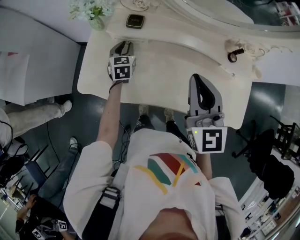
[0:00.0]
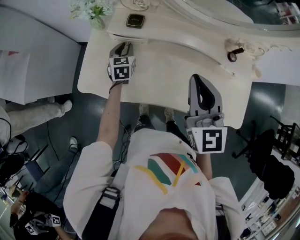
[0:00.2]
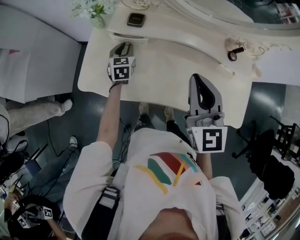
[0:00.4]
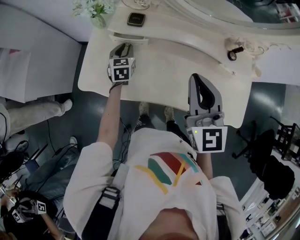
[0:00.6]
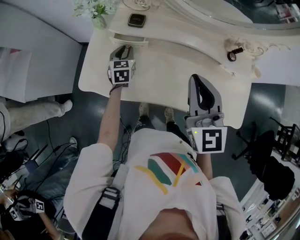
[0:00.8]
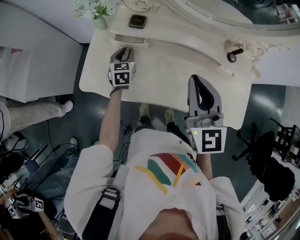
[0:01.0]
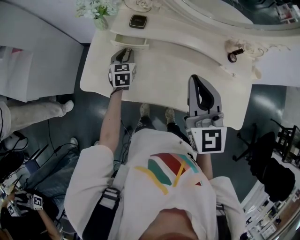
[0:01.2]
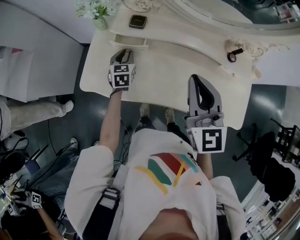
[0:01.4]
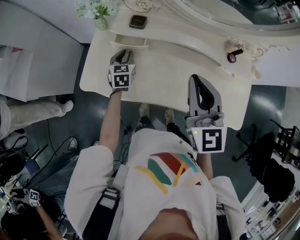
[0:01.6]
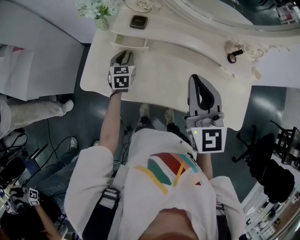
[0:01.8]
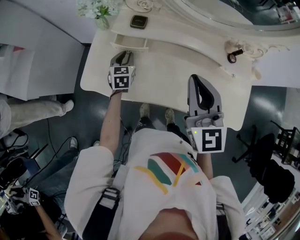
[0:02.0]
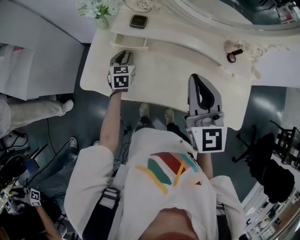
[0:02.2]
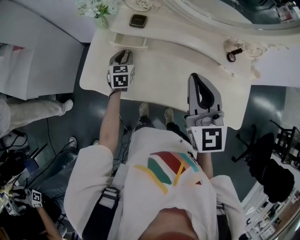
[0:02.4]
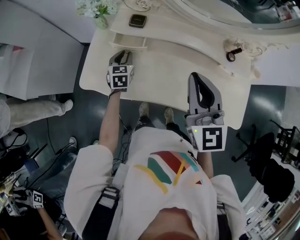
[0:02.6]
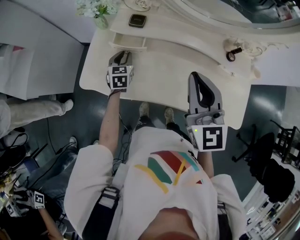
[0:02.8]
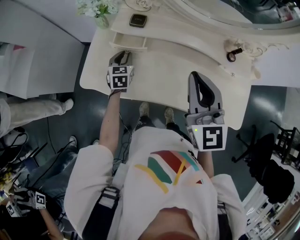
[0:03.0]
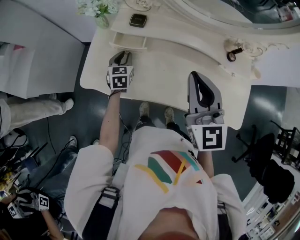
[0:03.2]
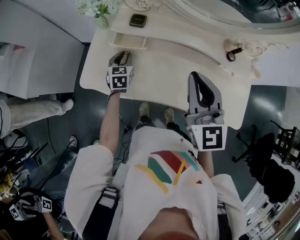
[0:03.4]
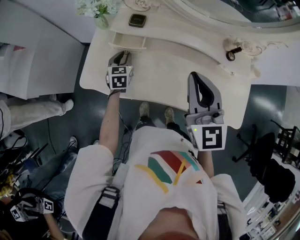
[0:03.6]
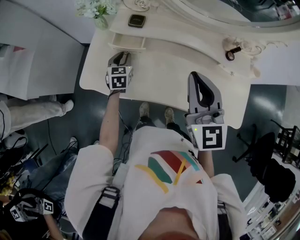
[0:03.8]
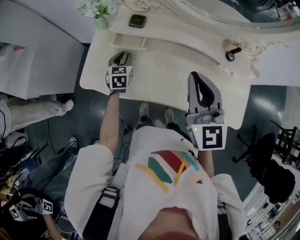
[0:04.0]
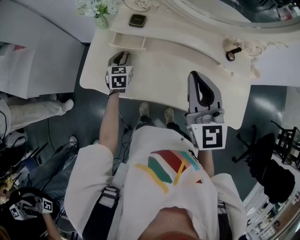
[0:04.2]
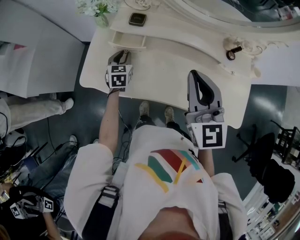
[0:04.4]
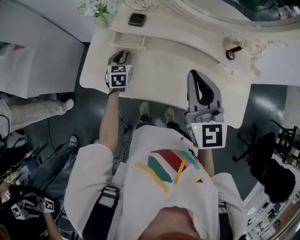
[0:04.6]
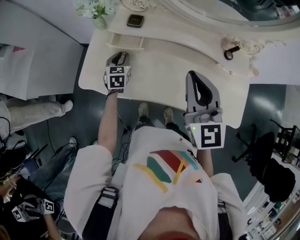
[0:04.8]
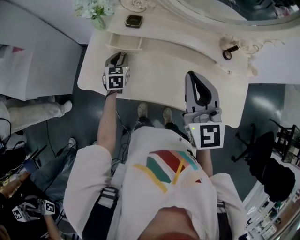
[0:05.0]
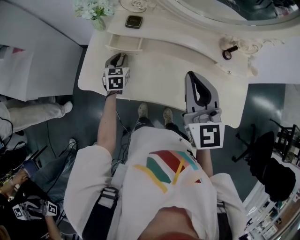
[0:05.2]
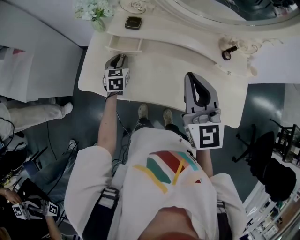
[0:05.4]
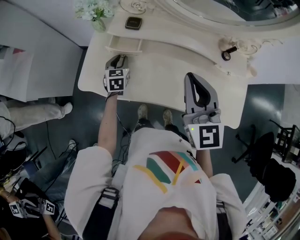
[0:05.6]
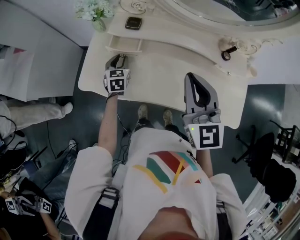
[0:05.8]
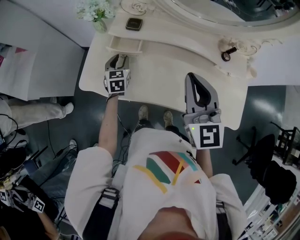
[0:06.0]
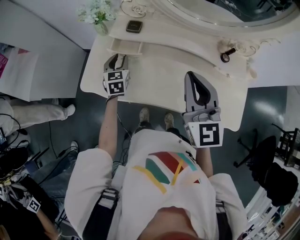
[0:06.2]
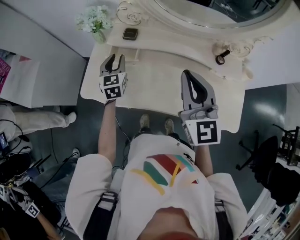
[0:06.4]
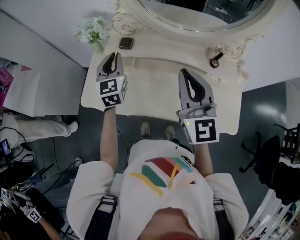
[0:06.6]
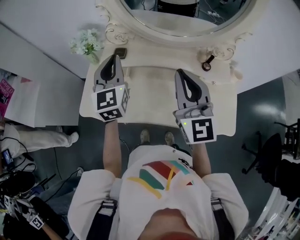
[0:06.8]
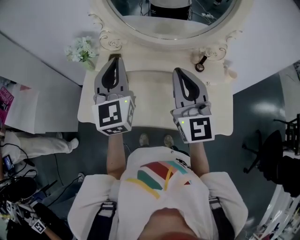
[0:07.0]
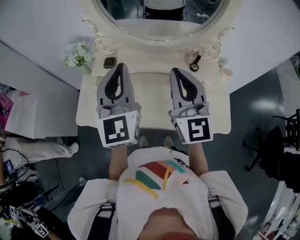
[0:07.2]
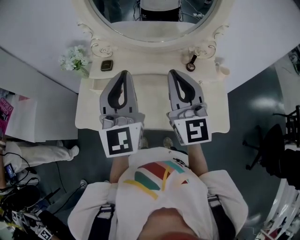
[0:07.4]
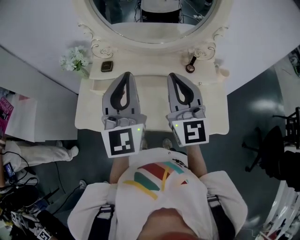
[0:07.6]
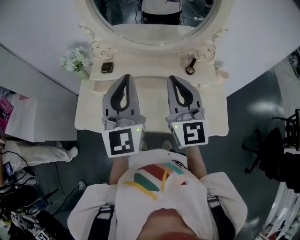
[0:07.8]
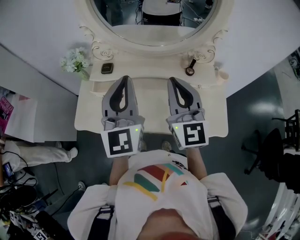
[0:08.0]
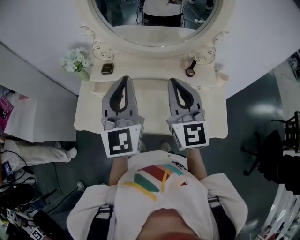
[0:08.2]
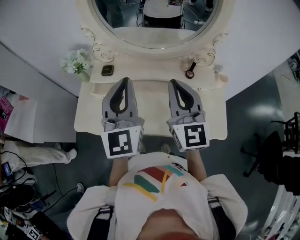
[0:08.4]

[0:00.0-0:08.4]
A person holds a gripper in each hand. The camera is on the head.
0:00.0 to 0:02.8: The grippers make only small movements.
0:02.8 to 0:05.6: The two grippers keep their place.
0:05.6 to 0:07.0: The right gripper shifts about 10 cm upward and to the right; the left gripper is displaced upward by some 35 cm, and tips its fingers upward by about 40 degrees.
0:07.0 to 0:08.4: The left gripper heads backward and to the right, covering approximately 10 cm.

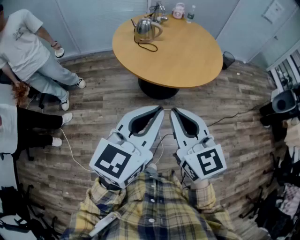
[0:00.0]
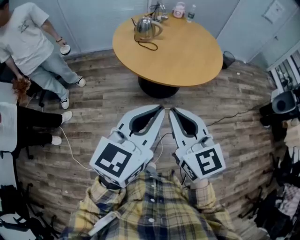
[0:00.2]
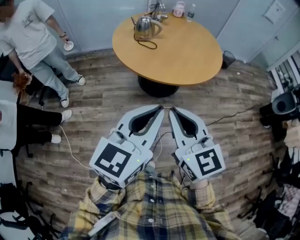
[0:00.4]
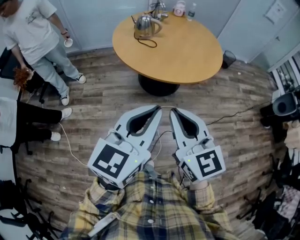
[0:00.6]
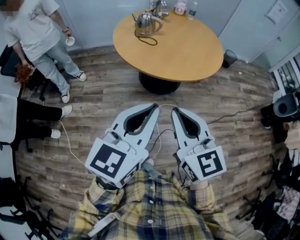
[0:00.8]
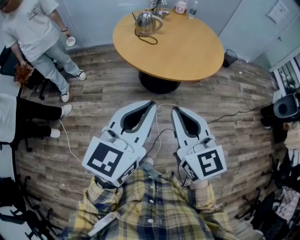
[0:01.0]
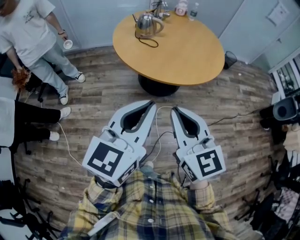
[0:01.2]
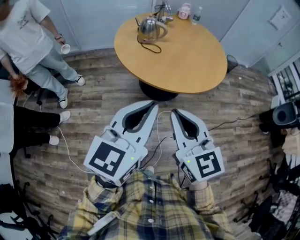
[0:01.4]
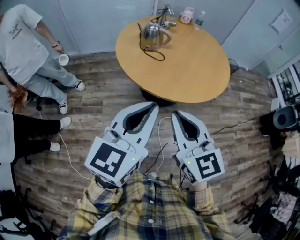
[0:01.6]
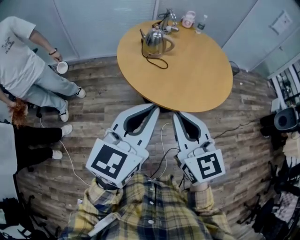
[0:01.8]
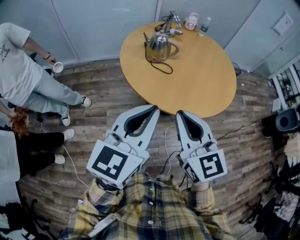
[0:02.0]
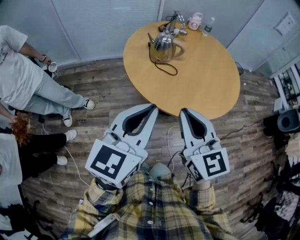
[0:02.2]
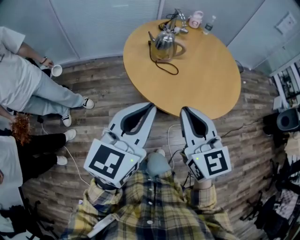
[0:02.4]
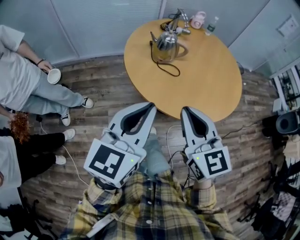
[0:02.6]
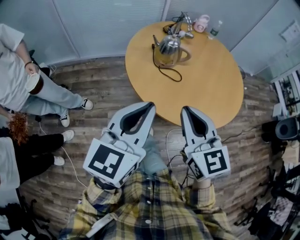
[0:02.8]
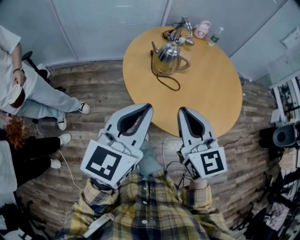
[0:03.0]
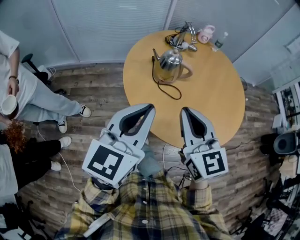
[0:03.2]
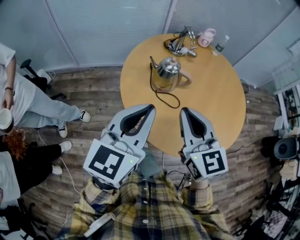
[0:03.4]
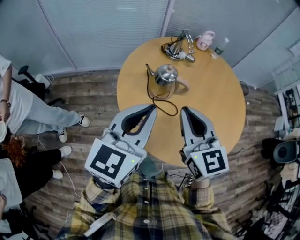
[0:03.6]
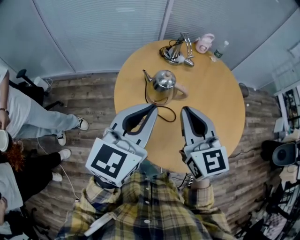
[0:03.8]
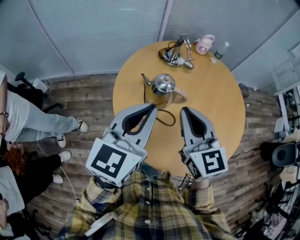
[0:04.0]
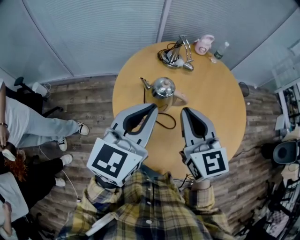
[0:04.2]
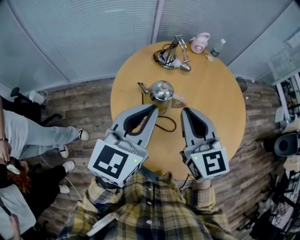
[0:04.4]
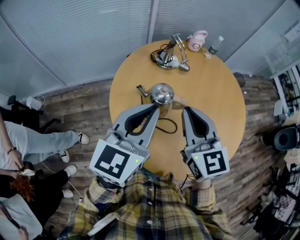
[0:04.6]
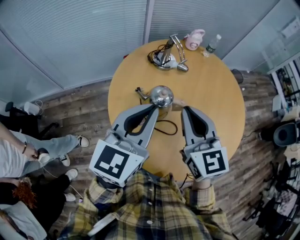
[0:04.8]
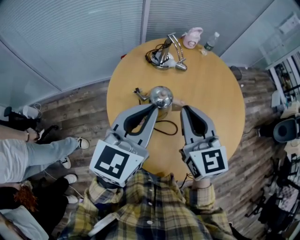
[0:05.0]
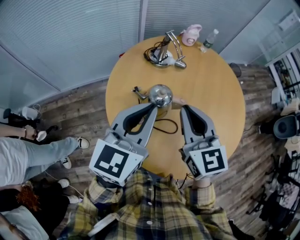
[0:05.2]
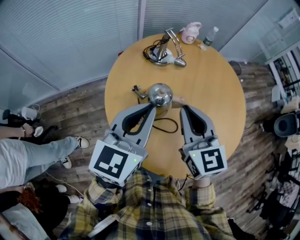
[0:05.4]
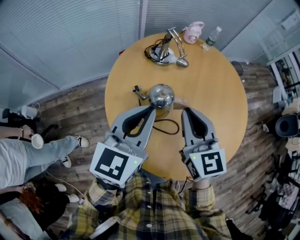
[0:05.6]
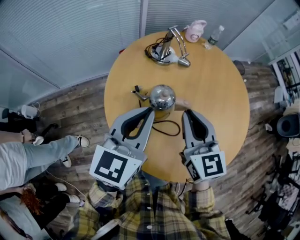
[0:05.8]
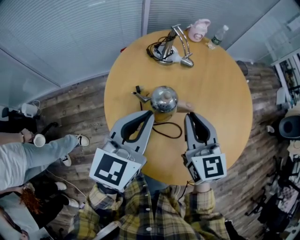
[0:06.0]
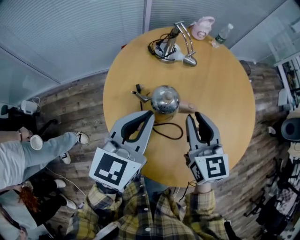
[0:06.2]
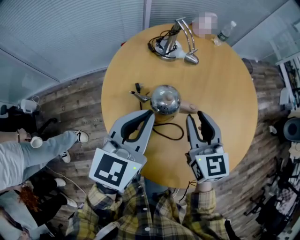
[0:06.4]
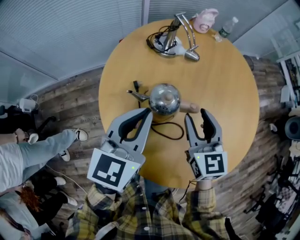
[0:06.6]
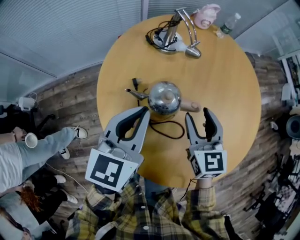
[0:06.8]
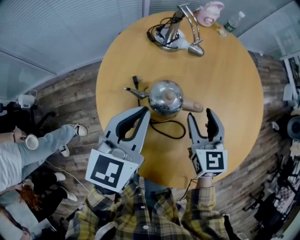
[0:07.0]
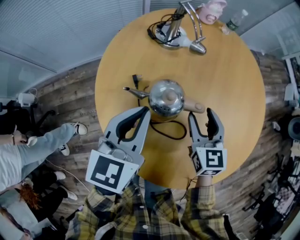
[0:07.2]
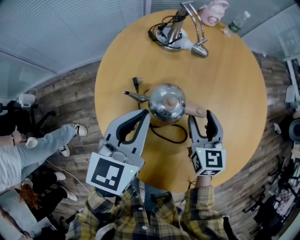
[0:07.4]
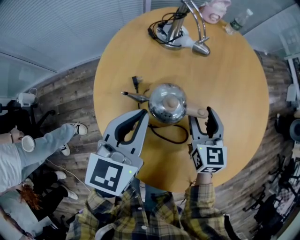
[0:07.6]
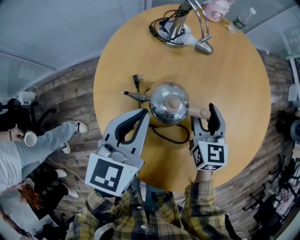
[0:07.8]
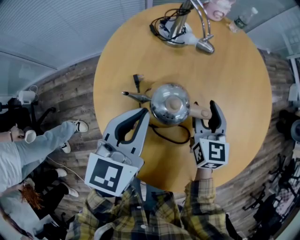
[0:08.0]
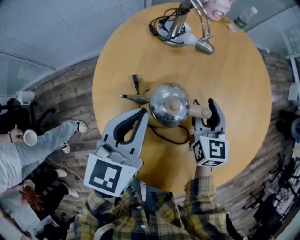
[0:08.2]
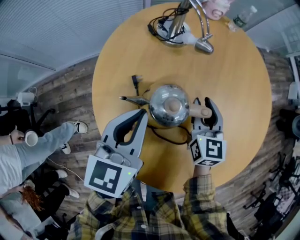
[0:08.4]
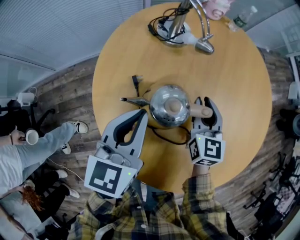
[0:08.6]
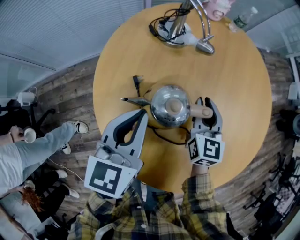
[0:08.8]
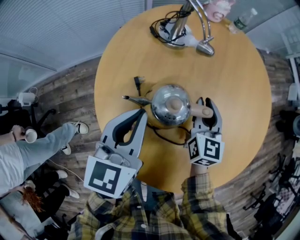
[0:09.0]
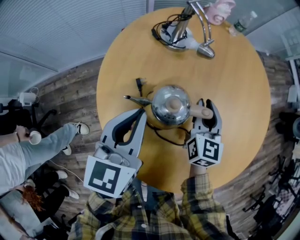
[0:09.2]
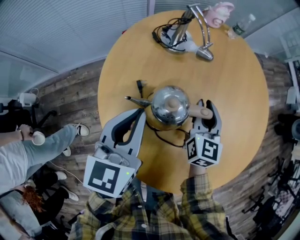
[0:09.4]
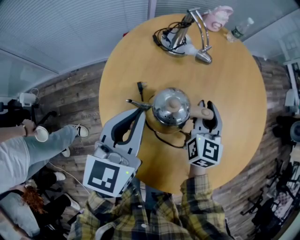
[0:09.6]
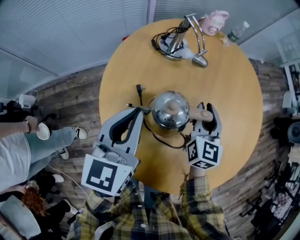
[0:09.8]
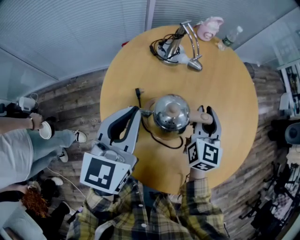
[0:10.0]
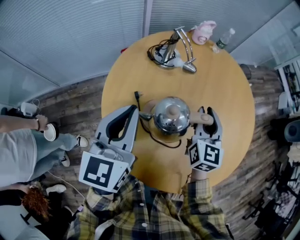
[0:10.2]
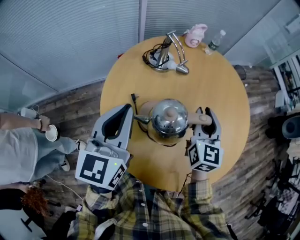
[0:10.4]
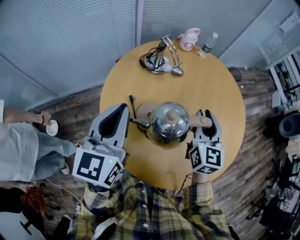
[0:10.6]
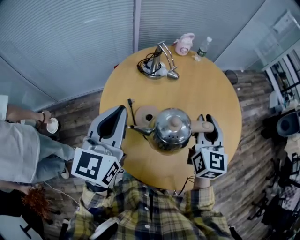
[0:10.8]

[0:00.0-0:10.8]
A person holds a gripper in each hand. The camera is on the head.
0:00.0 to 0:01.6: The left gripper heads forward and to the left, covering roughly 15 cm, while the right gripper moves forward, roughly 10 cm.
0:01.6 to 0:03.0: Both grippers move forward and to the left, roughly 25 cm.
0:03.0 to 0:04.6: The grippers both shift forward by some 30 cm.
0:04.6 to 0:06.2: The two grippers go about 10 cm downward and forward.
0:06.2 to 0:07.8: The left gripper moves downward, roughly 10 cm. The right gripper goes roughly 15 cm downward and forward, and opens up.
0:07.8 to 0:09.2: The right gripper closes up.
0:09.2 to 0:10.8: The left gripper travels upward by some 15 cm. Meanwhile the right gripper travels upward and backward by roughly 20 cm.

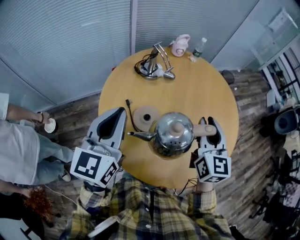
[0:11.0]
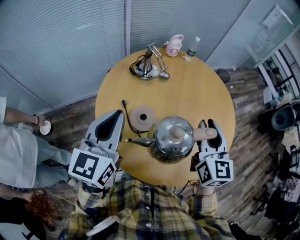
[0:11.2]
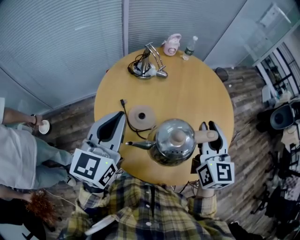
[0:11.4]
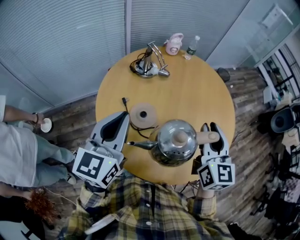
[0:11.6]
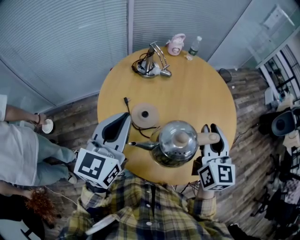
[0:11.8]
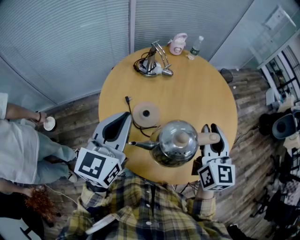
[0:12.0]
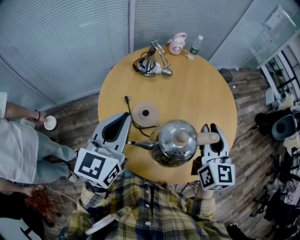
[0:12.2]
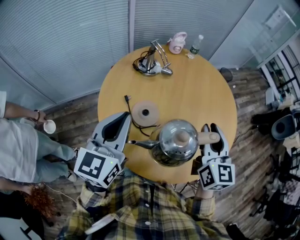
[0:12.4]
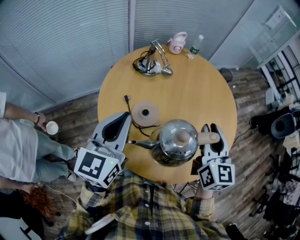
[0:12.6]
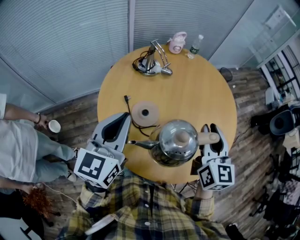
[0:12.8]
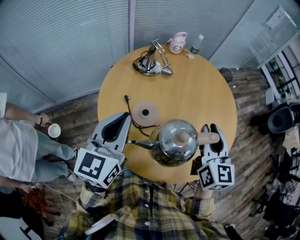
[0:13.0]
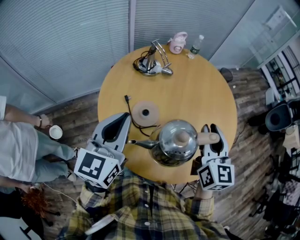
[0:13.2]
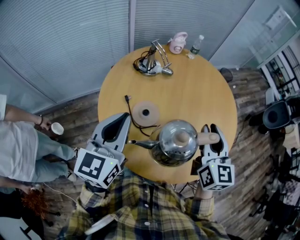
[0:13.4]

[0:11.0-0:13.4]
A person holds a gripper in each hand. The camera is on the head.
0:11.0 to 0:12.2: The right gripper shifts roughly 5 cm backward.
0:12.2 to 0:13.4: Neither gripper changes place.

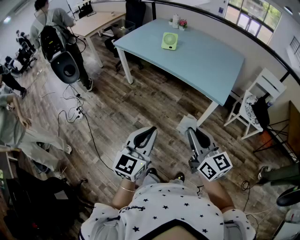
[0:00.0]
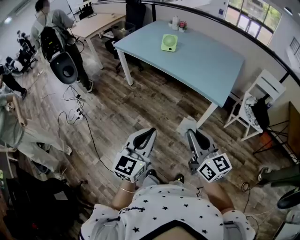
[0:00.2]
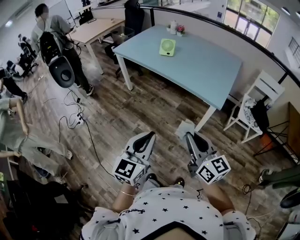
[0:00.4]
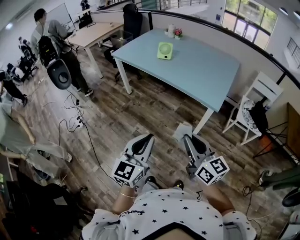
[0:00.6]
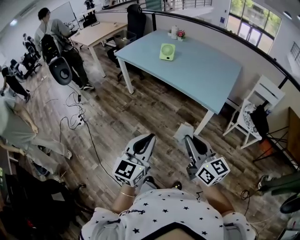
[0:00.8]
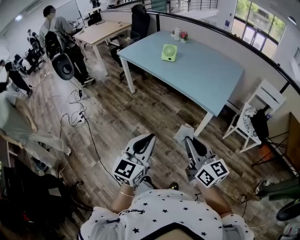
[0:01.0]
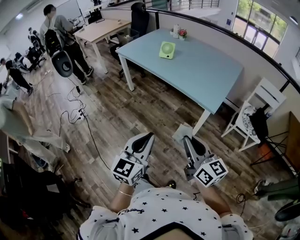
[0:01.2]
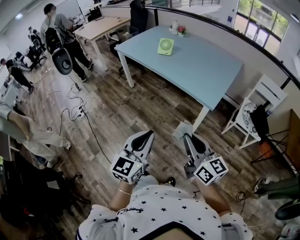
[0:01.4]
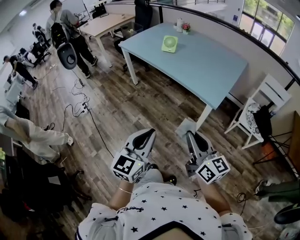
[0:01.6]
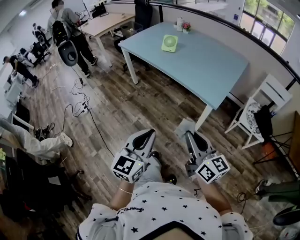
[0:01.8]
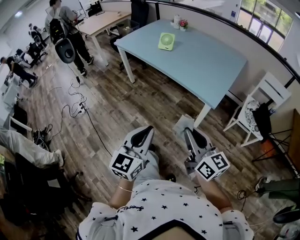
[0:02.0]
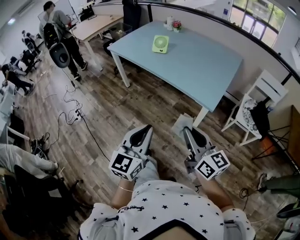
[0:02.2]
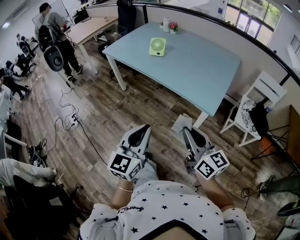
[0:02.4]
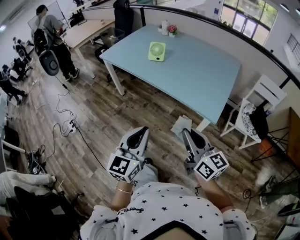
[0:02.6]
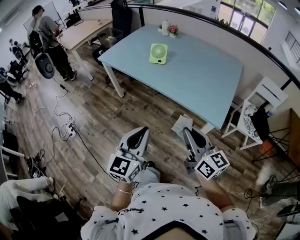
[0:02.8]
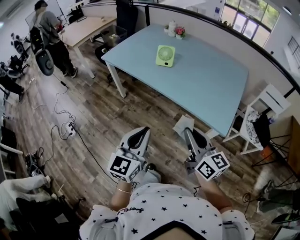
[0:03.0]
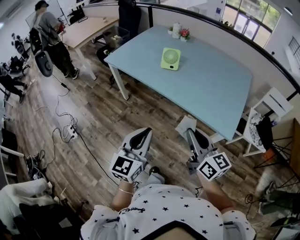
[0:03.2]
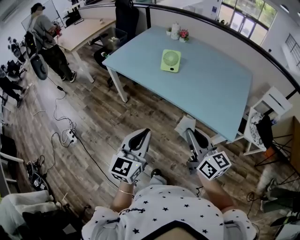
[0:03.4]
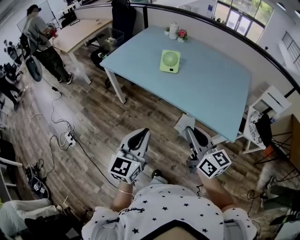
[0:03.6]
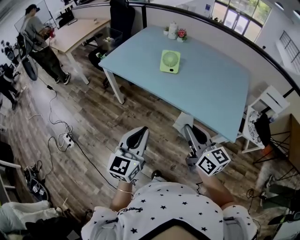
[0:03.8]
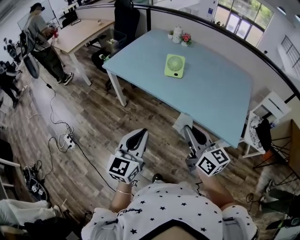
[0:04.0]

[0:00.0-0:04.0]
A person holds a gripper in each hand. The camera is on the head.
0:00.0 to 0:01.4: The two grippers go roughly 10 cm to the right.
0:01.4 to 0:02.6: Both grippers travel together forward, some 15 cm.
0:02.6 to 0:04.0: Both grippers move forward and to the left, about 25 cm.
